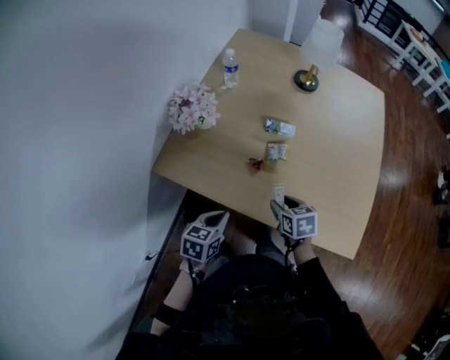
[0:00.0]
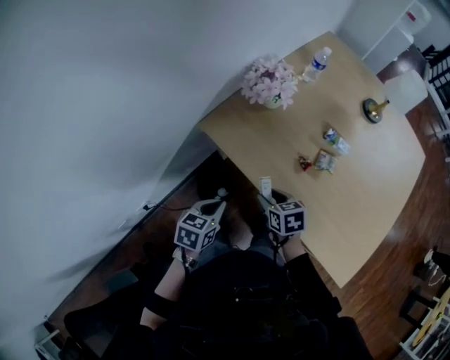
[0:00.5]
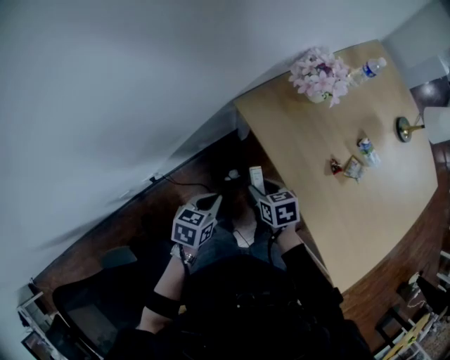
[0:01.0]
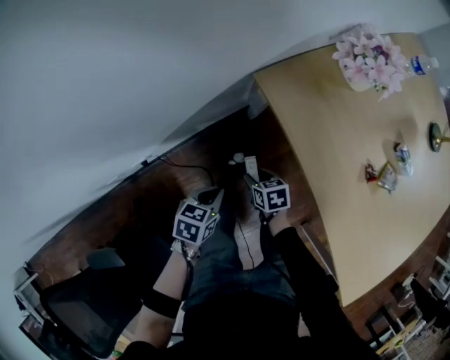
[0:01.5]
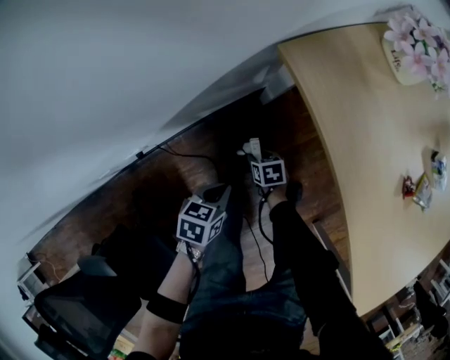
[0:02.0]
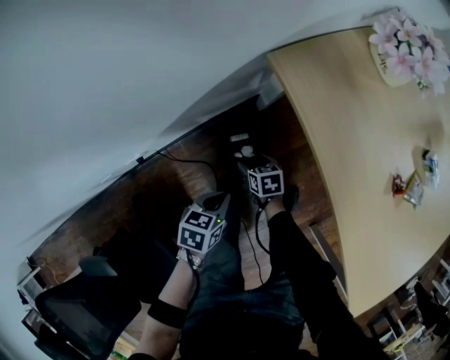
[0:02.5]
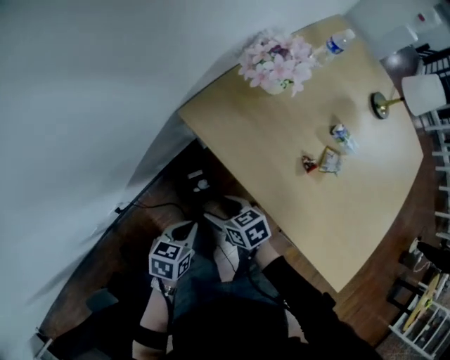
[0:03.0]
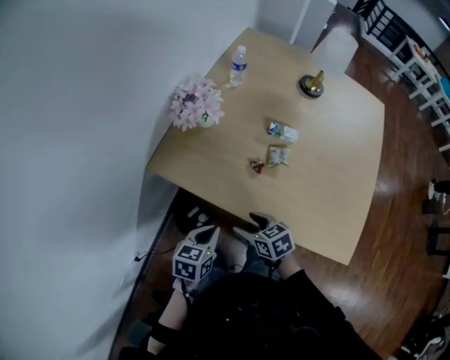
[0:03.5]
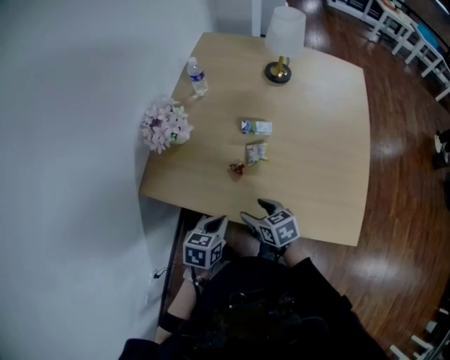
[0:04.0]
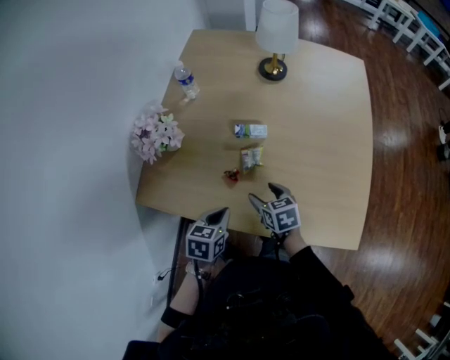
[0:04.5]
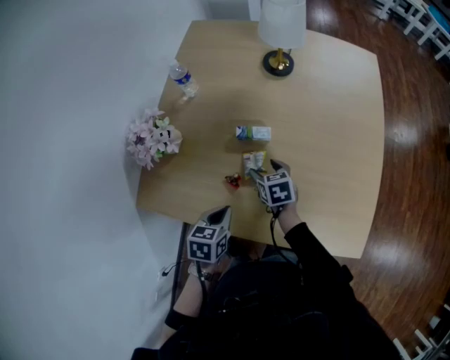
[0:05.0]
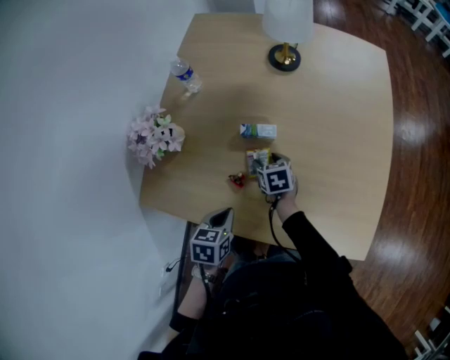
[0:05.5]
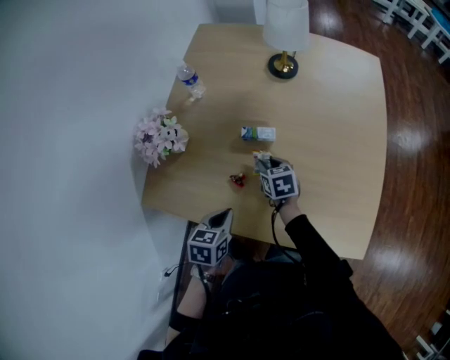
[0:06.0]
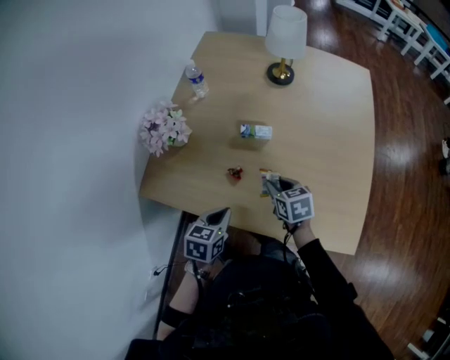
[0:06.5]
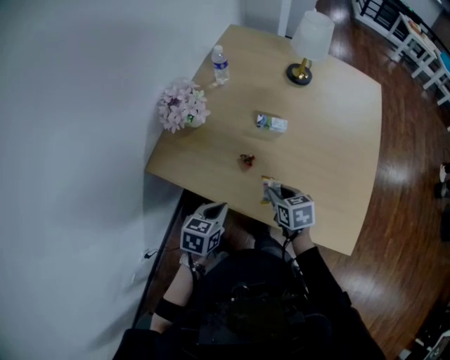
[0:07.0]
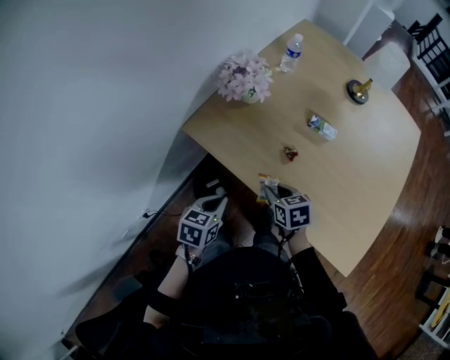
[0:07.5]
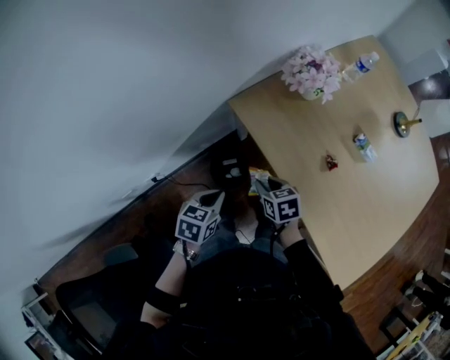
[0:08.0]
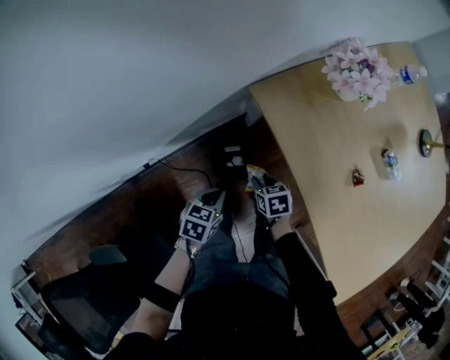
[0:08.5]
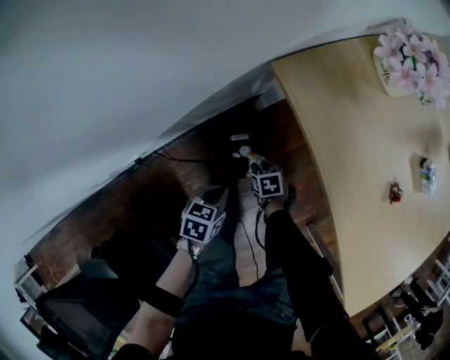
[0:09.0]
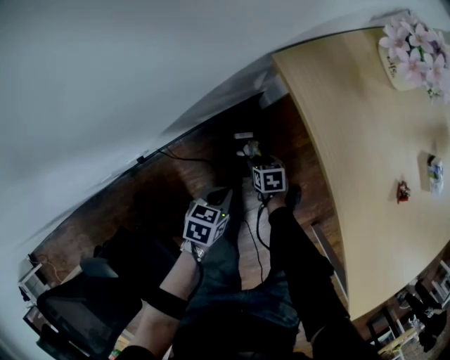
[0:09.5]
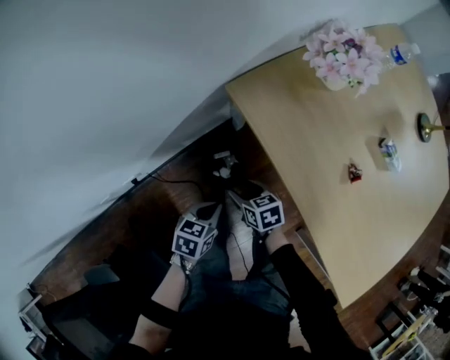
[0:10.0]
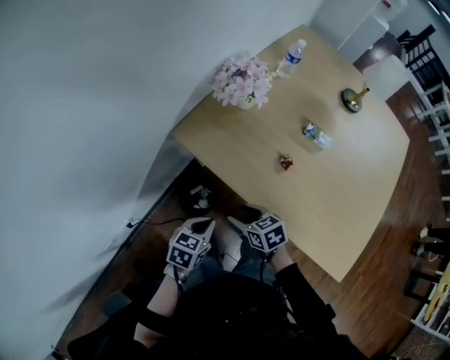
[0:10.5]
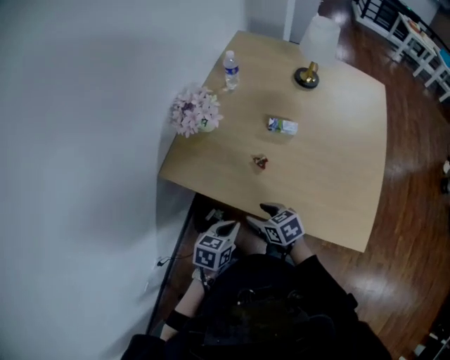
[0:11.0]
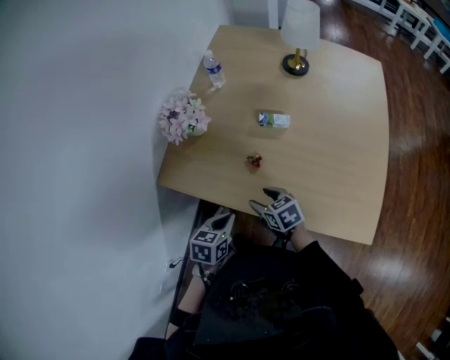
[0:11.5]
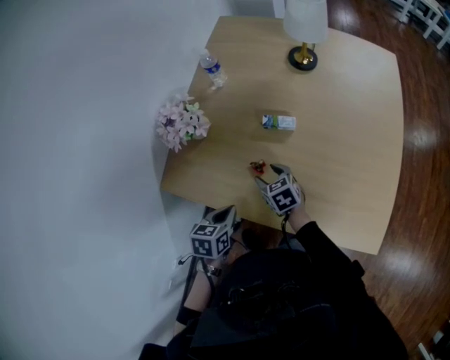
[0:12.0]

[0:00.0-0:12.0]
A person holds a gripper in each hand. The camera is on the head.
0:00.0 to 0:02.0: Both grippers move downward, about 40 cm. The left gripper swivels about 40 degrees. Meanwhile the right gripper turns by some 50 degrees.
0:02.0 to 0:04.0: The two grippers go roughly 40 cm upward. The left gripper turns by roughly 40 degrees, while the right gripper rotates some 40 degrees, and opens its fingers.
0:04.0 to 0:06.0: The left gripper moves forward, about 10 cm. Meanwhile the right gripper travels forward by some 20 cm, and closes.
0:06.0 to 0:08.0: The right gripper changes place by approximately 40 cm, and swivels roughly 40 degrees; the left gripper moves some 35 cm, and turns by approximately 30 degrees.
0:08.0 to 0:10.0: Both grippers move downward, some 15 cm. The right gripper opens its fingers.
0:10.0 to 0:12.0: The left gripper moves roughly 35 cm, and changes its angle by some 30 degrees. The right gripper shifts by roughly 40 cm, and turns by roughly 40 degrees.

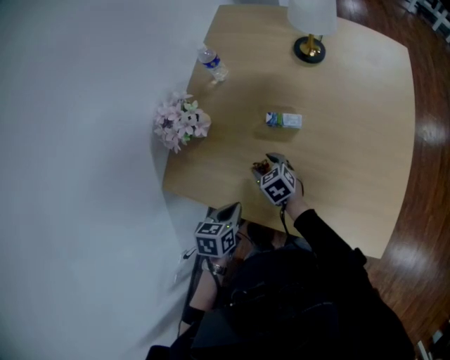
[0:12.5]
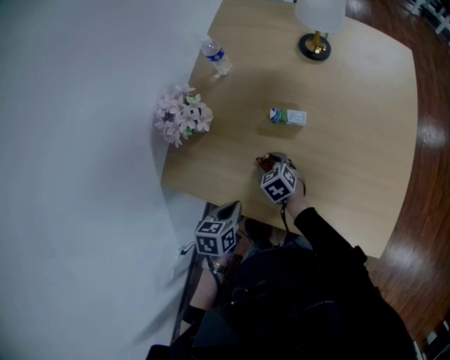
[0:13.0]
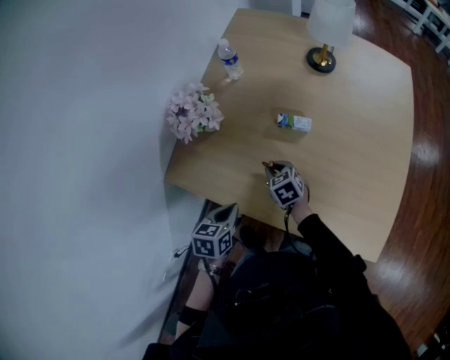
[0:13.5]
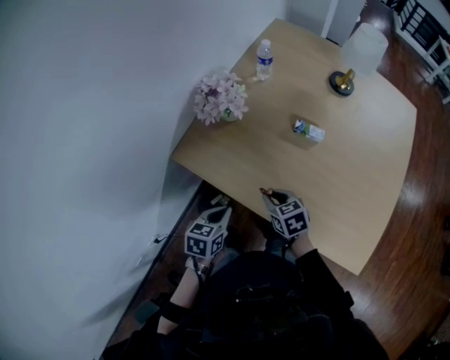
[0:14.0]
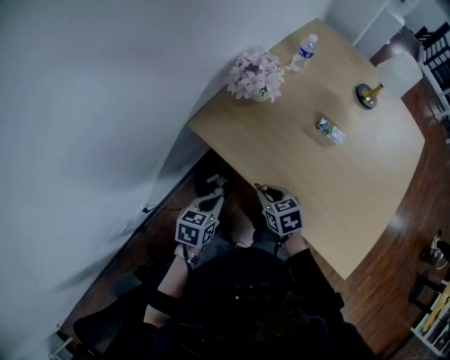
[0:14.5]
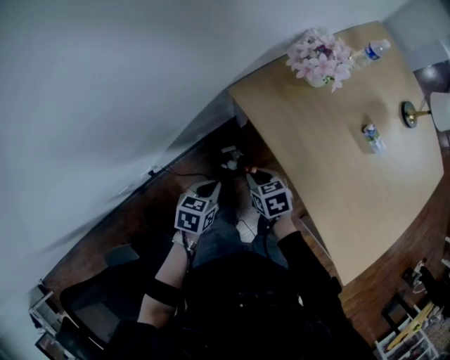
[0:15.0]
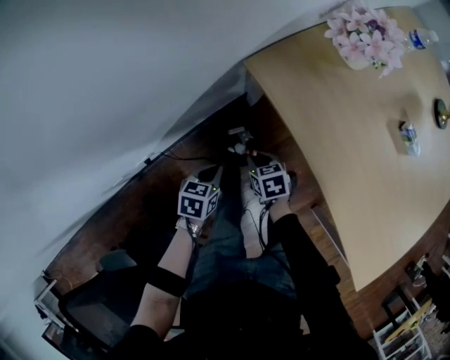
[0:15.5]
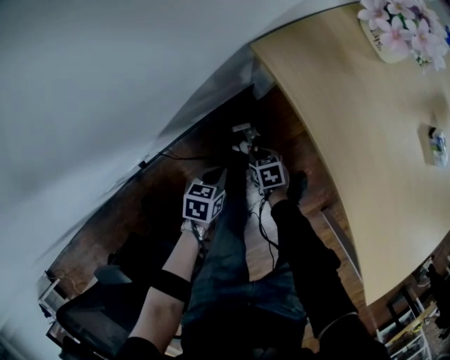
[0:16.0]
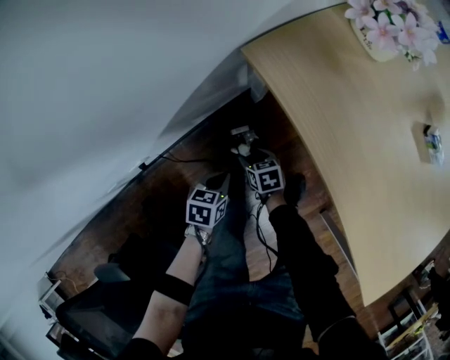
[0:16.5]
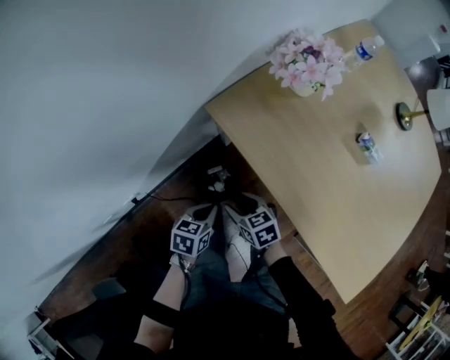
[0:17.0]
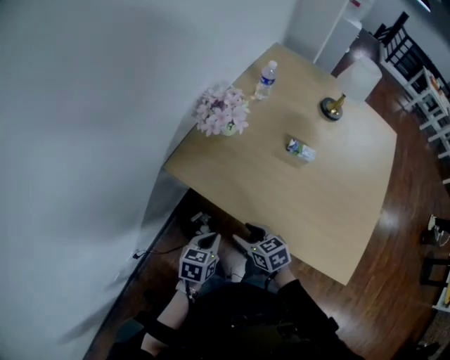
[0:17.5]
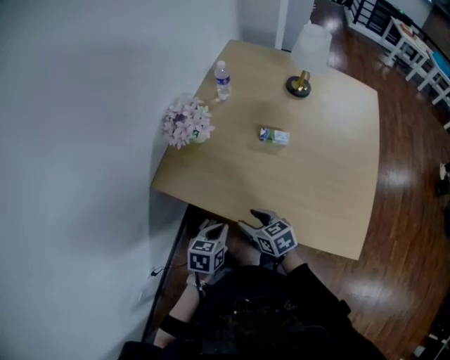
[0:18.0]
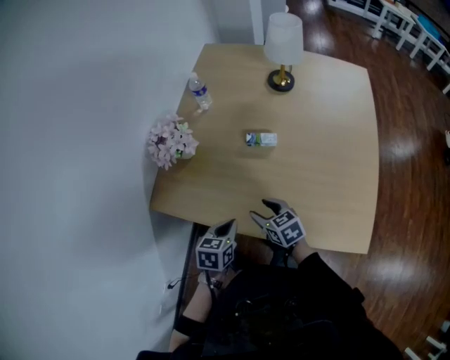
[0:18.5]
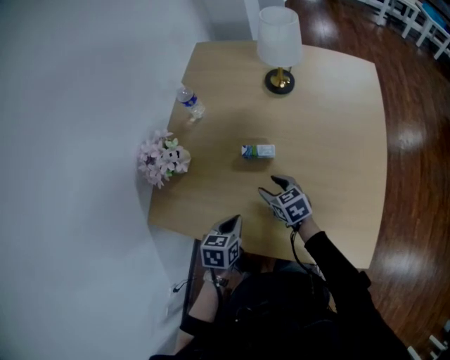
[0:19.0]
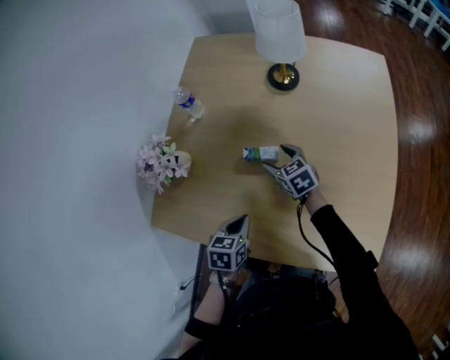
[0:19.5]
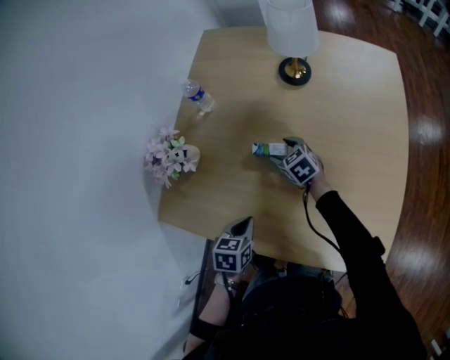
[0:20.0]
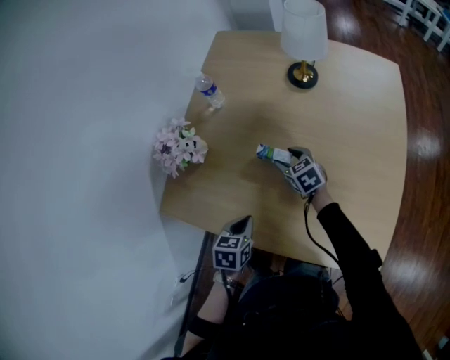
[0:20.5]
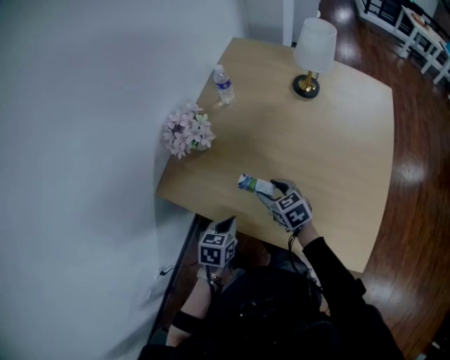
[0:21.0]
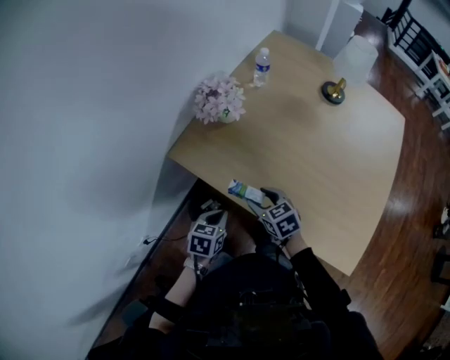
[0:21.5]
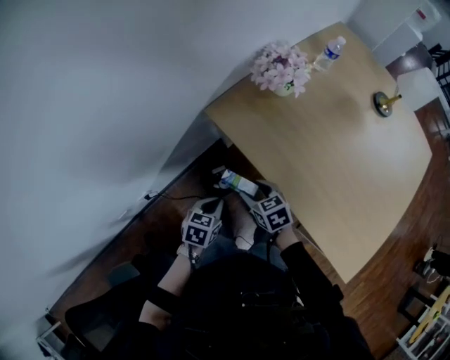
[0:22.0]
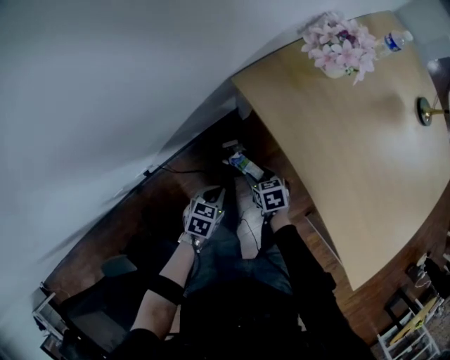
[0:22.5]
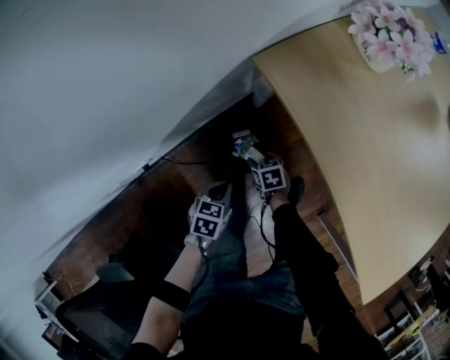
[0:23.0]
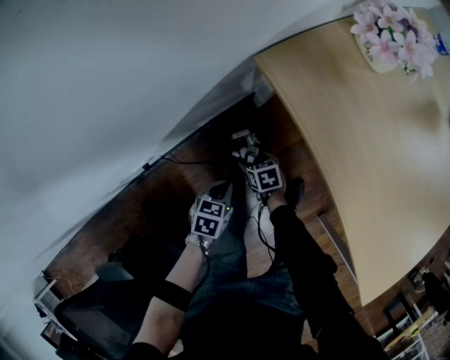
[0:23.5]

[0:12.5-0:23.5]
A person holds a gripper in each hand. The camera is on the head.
0:12.5 to 0:14.5: The left gripper moves to the left and backward, about 20 cm; the right gripper travels backward and to the left by roughly 20 cm, and closes its fingers.
0:14.5 to 0:16.0: The grippers both shift downward and to the left by approximately 40 cm. The left gripper turns by roughly 20 degrees, while the right gripper changes its angle by roughly 20 degrees.
0:16.0 to 0:18.0: Both grippers travel together upward, about 40 cm. The right gripper swivels about 40 degrees, and opens up. The left gripper rotates approximately 30 degrees.
0:18.0 to 0:20.0: The right gripper moves forward and to the right, approximately 35 cm, while the left gripper is displaced forward and to the right by approximately 20 cm.
0:20.0 to 0:21.5: The left gripper is displaced to the left and backward by about 20 cm. The right gripper is displaced backward and to the left by approximately 35 cm.
0:21.5 to 0:23.5: The two grippers go some 35 cm downward. The left gripper rotates roughly 20 degrees. The right gripper swivels about 30 degrees.

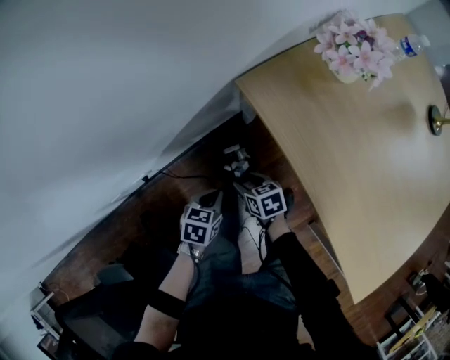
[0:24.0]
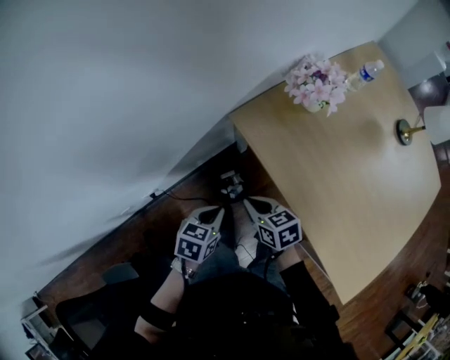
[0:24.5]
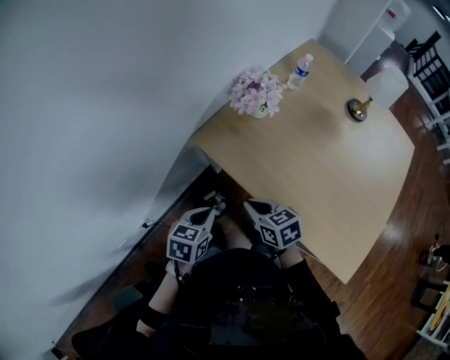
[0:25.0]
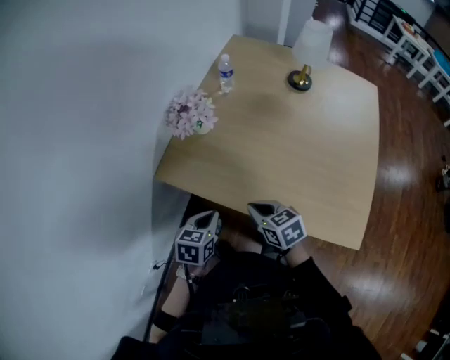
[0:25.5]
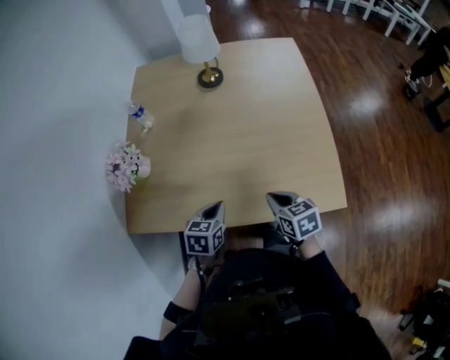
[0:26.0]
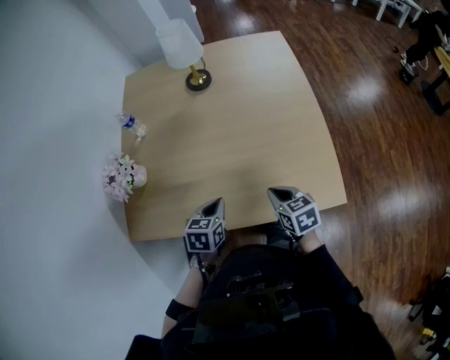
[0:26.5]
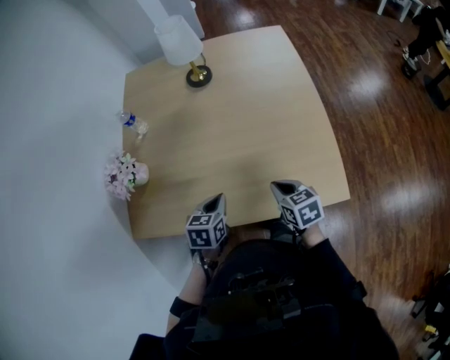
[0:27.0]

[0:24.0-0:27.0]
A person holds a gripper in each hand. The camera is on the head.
0:24.0 to 0:25.5: Both grippers move upward, some 30 cm. The left gripper turns by approximately 30 degrees; the right gripper swivels approximately 40 degrees, and closes.
0:25.5 to 0:27.0: The left gripper ends up about 25 cm from where it was, and changes its angle by roughly 20 degrees. The right gripper ends up roughly 25 cm from where it was, and rotates some 40 degrees.
